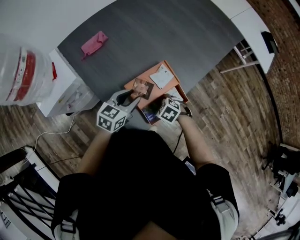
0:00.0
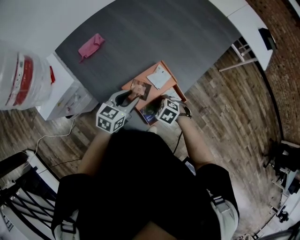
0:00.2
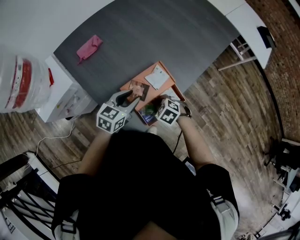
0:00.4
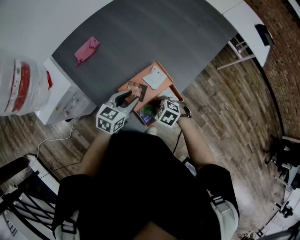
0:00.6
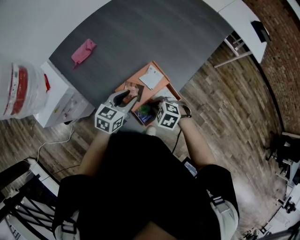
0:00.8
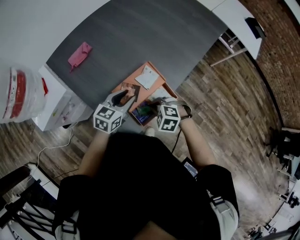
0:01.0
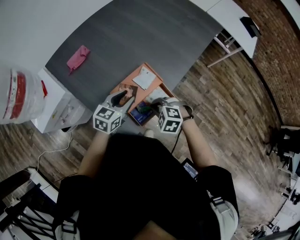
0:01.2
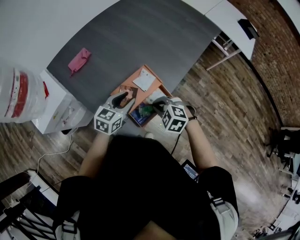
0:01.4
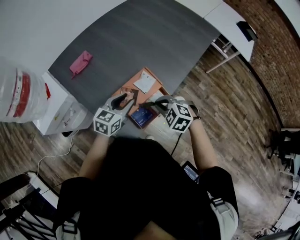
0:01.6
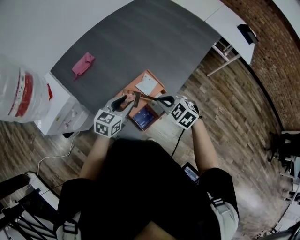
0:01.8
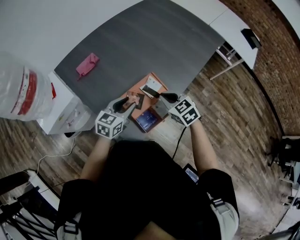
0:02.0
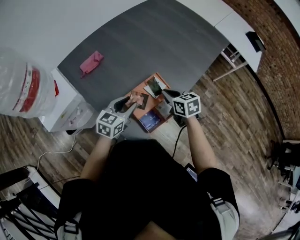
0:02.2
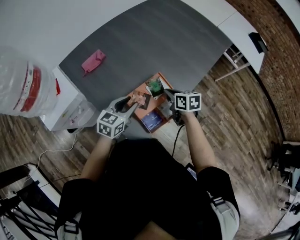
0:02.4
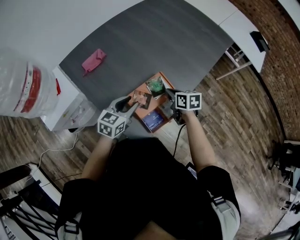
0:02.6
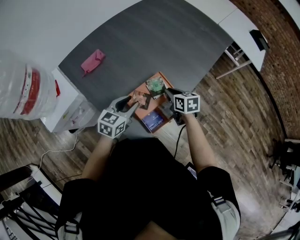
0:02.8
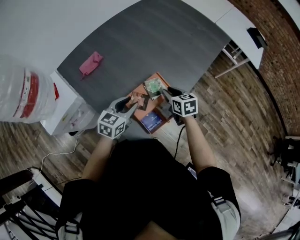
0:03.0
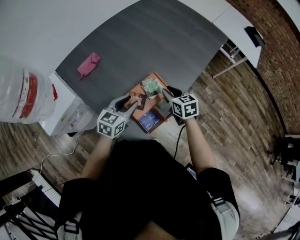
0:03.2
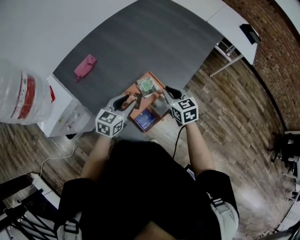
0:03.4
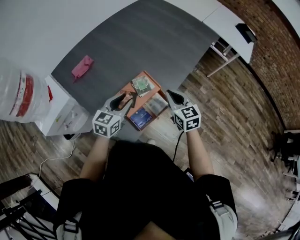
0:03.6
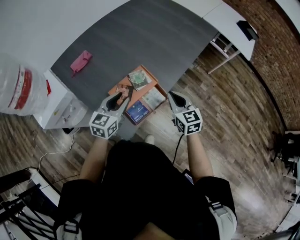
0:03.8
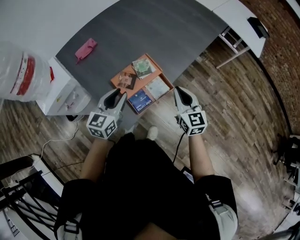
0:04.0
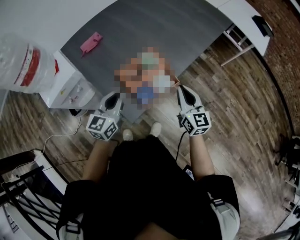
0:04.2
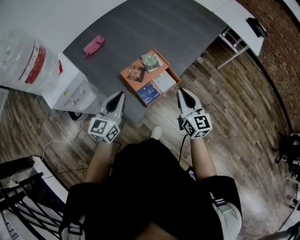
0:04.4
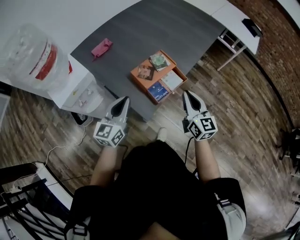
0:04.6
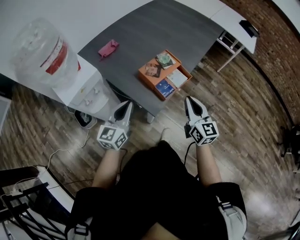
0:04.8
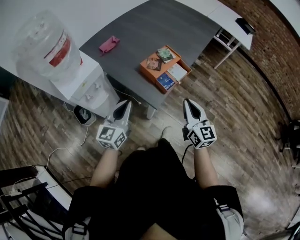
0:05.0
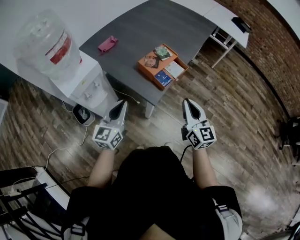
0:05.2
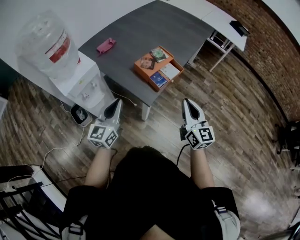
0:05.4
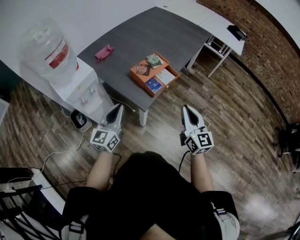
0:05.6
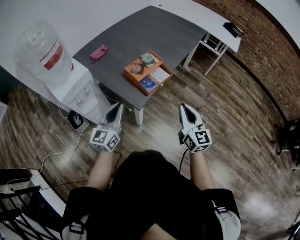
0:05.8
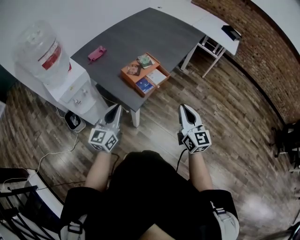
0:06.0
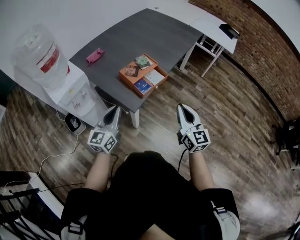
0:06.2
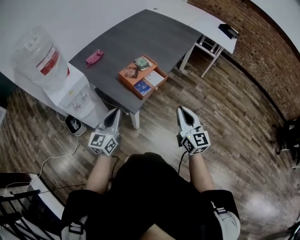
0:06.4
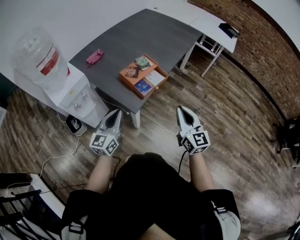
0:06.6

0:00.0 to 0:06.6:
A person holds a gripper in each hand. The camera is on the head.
0:00.0 to 0:01.6: The right gripper travels upward by about 15 cm, turns by some 20 degrees, and closes.
0:01.6 to 0:03.2: The right gripper is displaced forward by roughly 10 cm, twists some 50 degrees clockwise, seen from behind, and opens up.
0:03.2 to 0:05.0: The left gripper is displaced backward and to the left by some 25 cm, rotates some 20 degrees, and closes up, while the right gripper travels backward by approximately 30 cm, tips its fingers upward by roughly 30 degrees, and closes up.
0:05.0 to 0:06.6: Both grippers travel together to the right, roughly 10 cm.

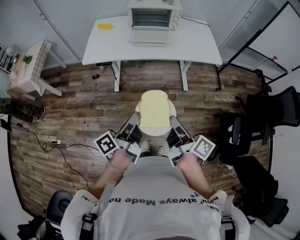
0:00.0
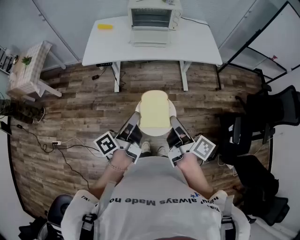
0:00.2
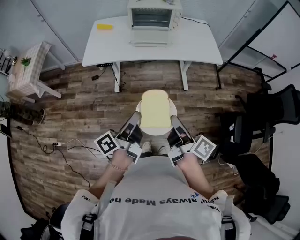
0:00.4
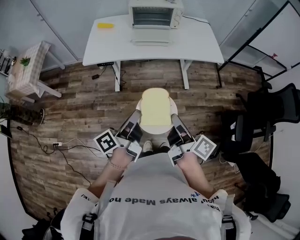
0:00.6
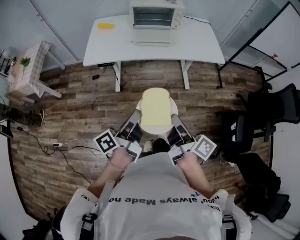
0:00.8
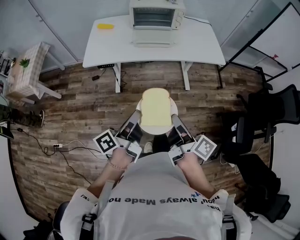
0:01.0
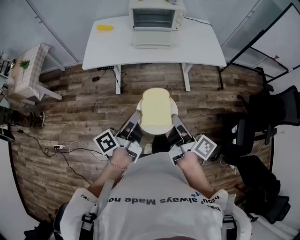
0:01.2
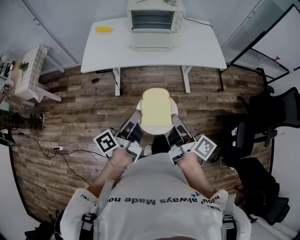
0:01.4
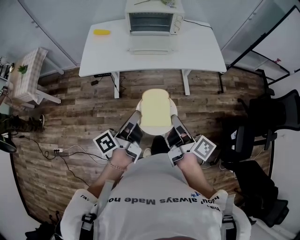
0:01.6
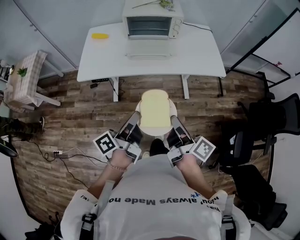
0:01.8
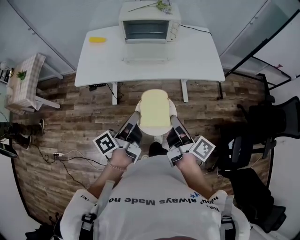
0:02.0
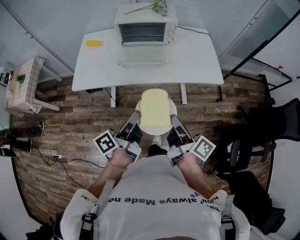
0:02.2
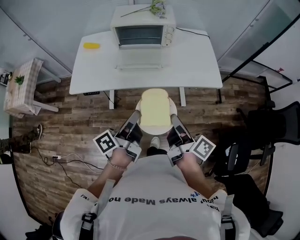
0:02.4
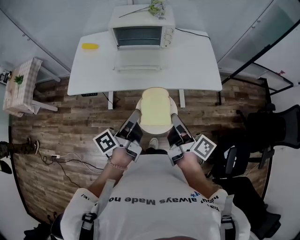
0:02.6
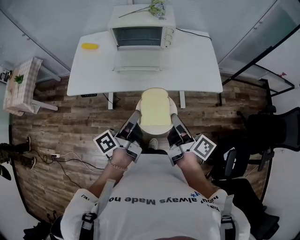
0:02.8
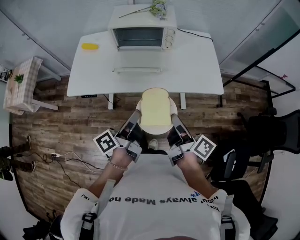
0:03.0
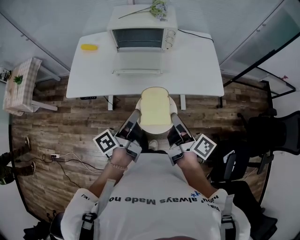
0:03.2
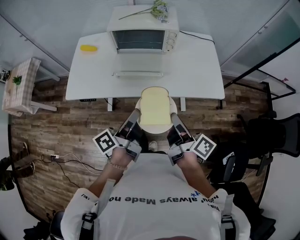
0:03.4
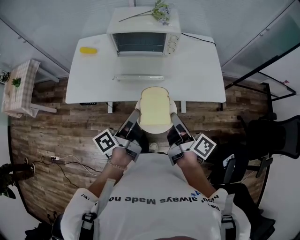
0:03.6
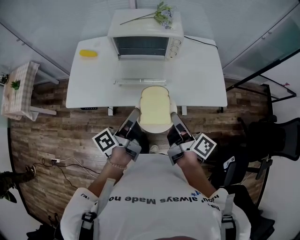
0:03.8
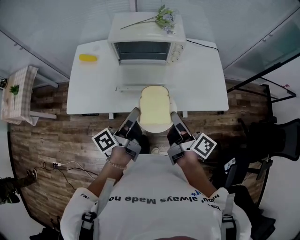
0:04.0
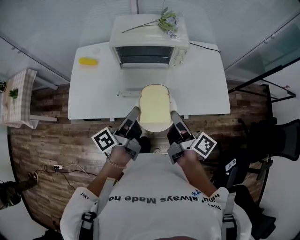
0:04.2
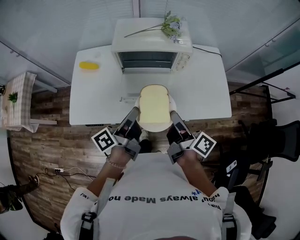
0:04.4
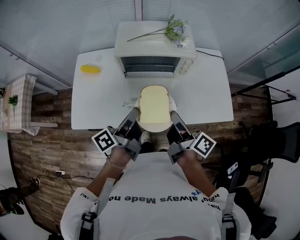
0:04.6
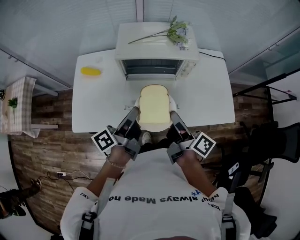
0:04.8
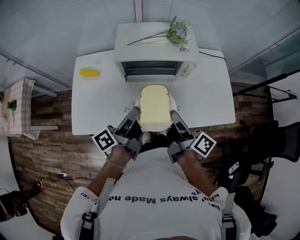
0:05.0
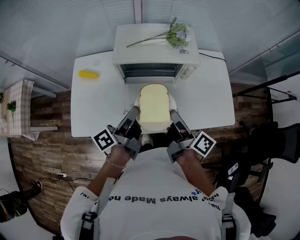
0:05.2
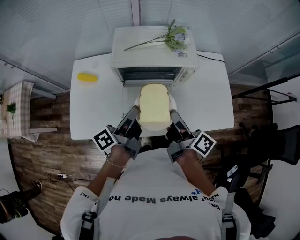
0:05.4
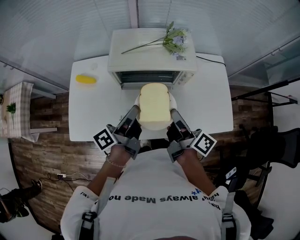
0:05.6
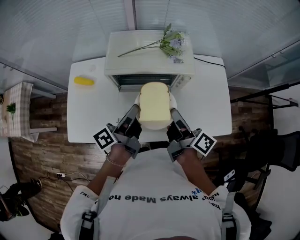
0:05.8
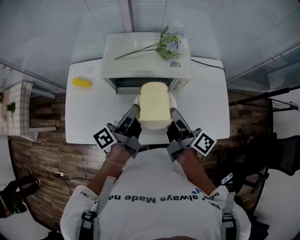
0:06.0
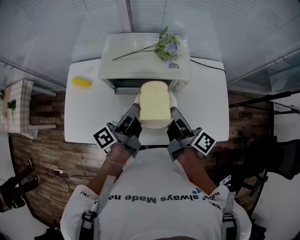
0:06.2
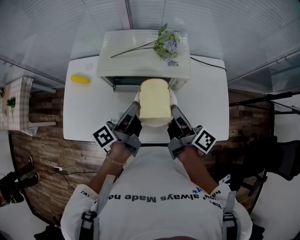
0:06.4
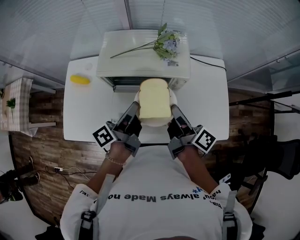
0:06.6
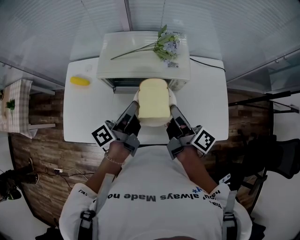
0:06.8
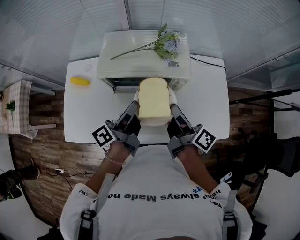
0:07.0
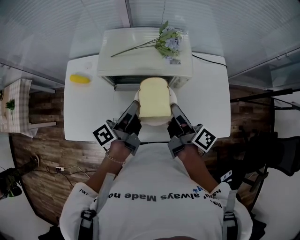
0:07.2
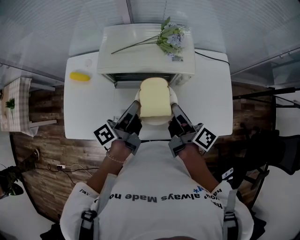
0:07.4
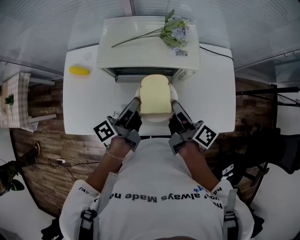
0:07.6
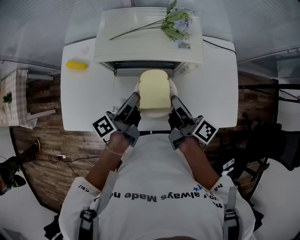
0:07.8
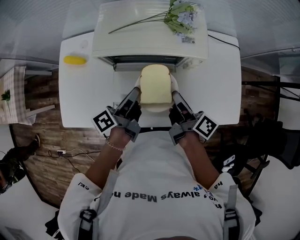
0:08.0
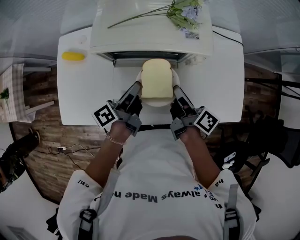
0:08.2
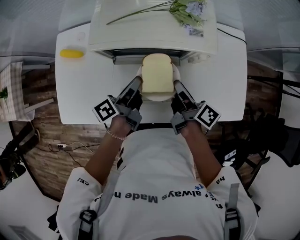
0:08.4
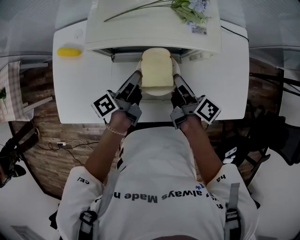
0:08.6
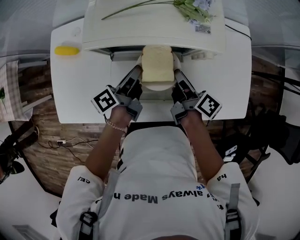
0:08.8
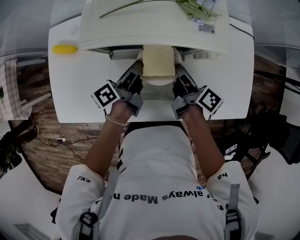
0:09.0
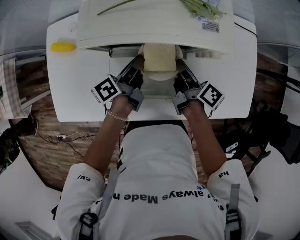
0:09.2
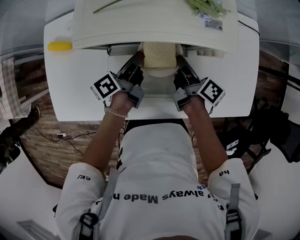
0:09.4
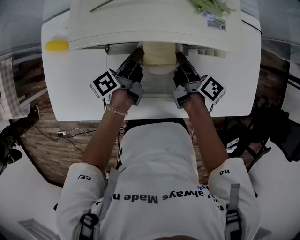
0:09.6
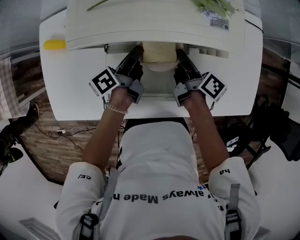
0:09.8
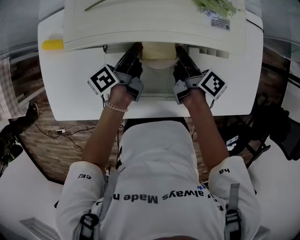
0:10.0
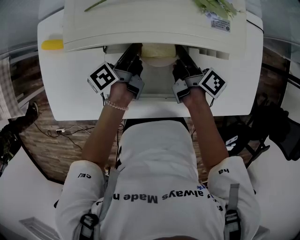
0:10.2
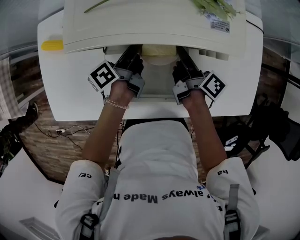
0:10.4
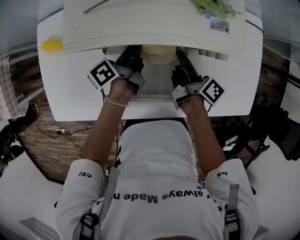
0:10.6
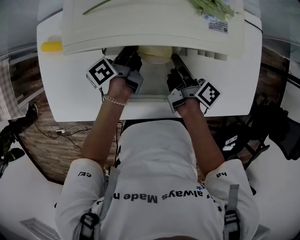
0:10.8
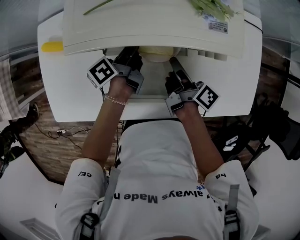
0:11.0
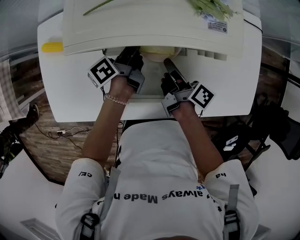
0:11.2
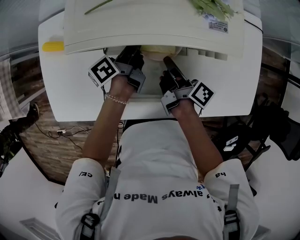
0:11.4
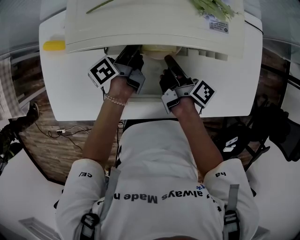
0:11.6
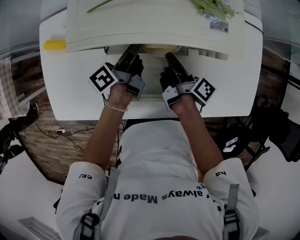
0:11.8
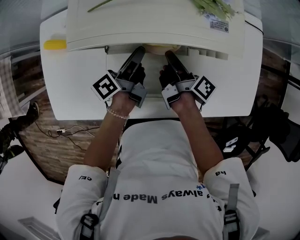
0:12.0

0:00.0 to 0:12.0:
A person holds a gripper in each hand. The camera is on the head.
0:00.0 to 0:01.6: The right gripper ends up approximately 10 cm from where it was.
0:01.6 to 0:03.0: The right gripper changes place by about 25 cm.
0:03.0 to 0:04.4: The right gripper moves approximately 25 cm.
0:04.4 to 0:06.0: The right gripper changes place by about 20 cm.
0:06.0 to 0:07.6: The right gripper moves about 5 cm.
0:07.6 to 0:09.0: The right gripper shifts some 15 cm downward.
0:09.0 to 0:10.4: The right gripper heads downward, covering roughly 5 cm.

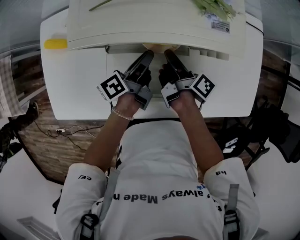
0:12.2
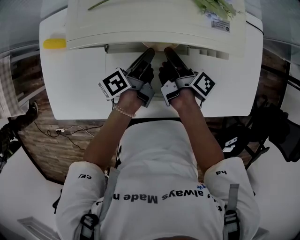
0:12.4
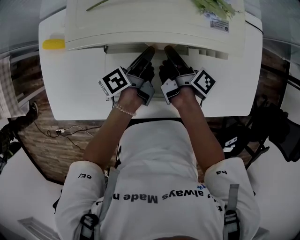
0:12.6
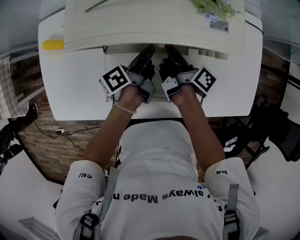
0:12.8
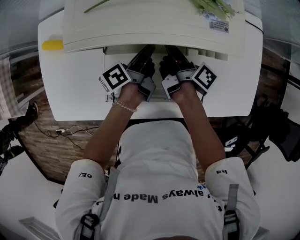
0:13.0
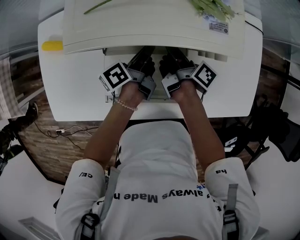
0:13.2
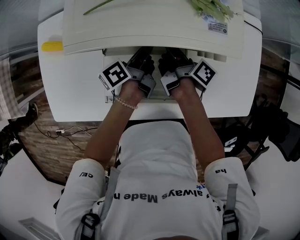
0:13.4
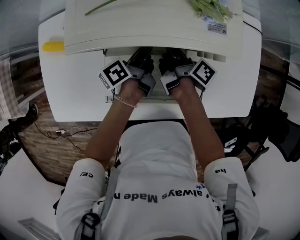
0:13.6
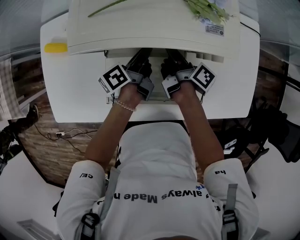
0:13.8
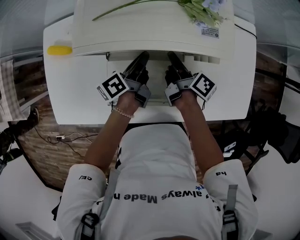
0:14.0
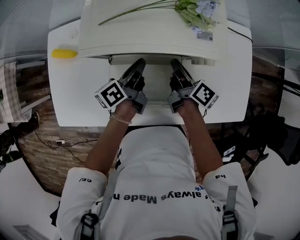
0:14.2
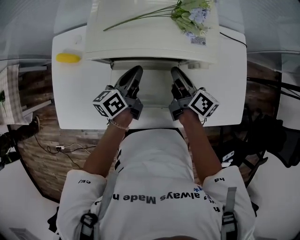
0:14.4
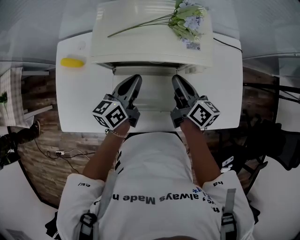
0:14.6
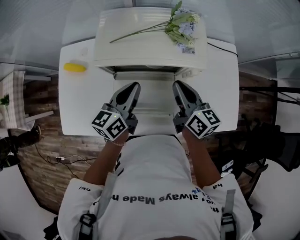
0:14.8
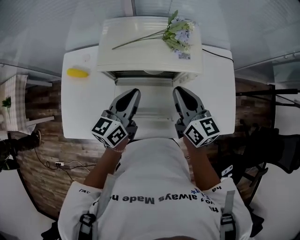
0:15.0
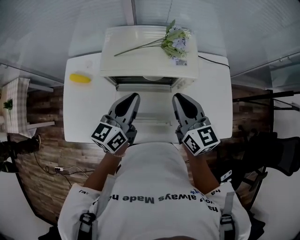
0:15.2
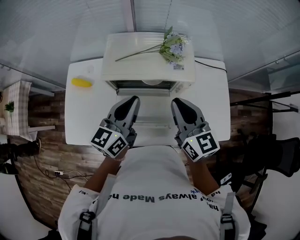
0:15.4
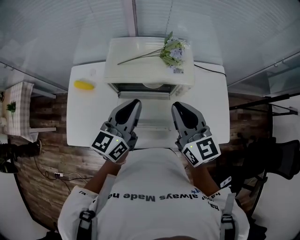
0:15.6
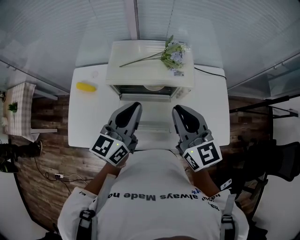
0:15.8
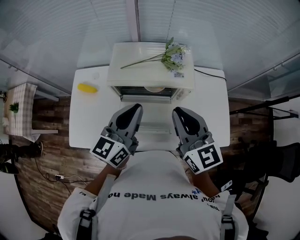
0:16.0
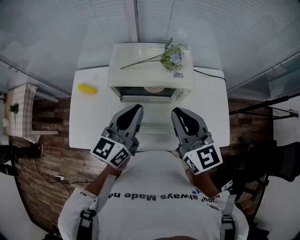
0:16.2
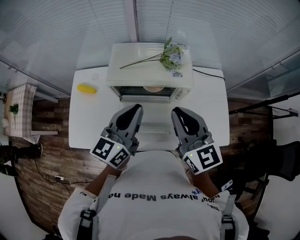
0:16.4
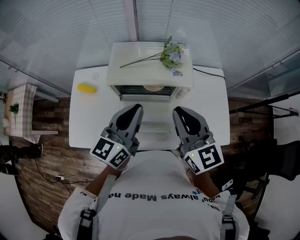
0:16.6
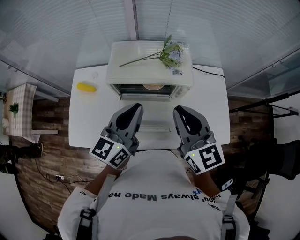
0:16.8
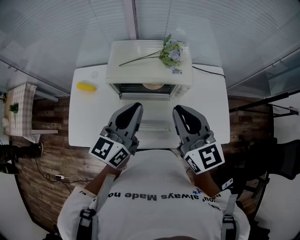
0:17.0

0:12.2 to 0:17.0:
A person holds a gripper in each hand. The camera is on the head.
0:13.8 to 0:15.4: The right gripper travels upward by some 30 cm, and twists some 80 degrees counterclockwise, seen from behind.
0:15.4 to 0:17.0: The right gripper is displaced upward by approximately 5 cm.
